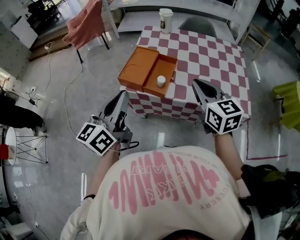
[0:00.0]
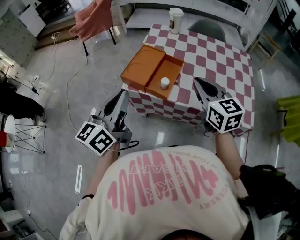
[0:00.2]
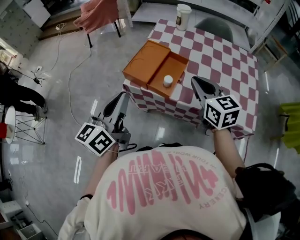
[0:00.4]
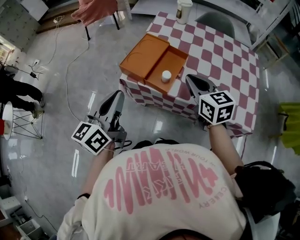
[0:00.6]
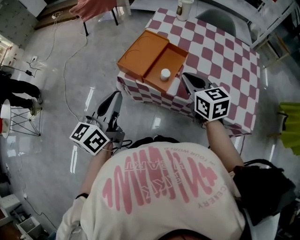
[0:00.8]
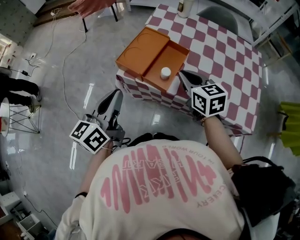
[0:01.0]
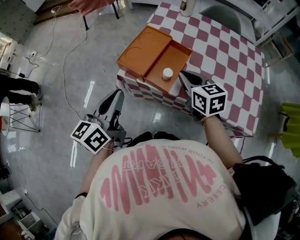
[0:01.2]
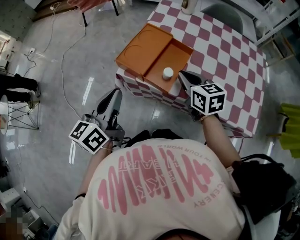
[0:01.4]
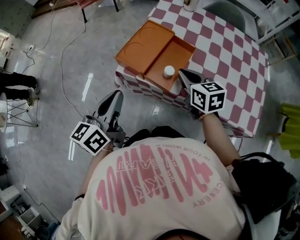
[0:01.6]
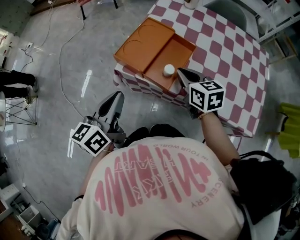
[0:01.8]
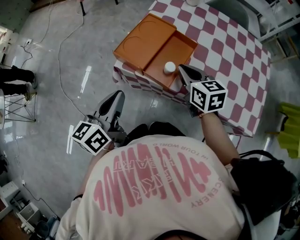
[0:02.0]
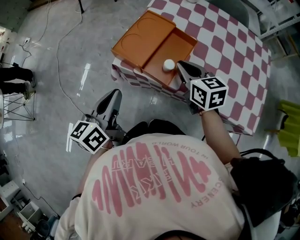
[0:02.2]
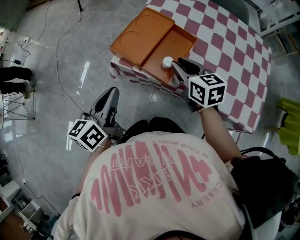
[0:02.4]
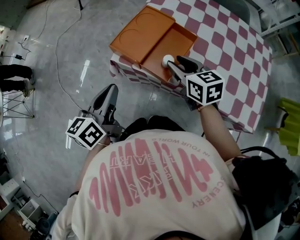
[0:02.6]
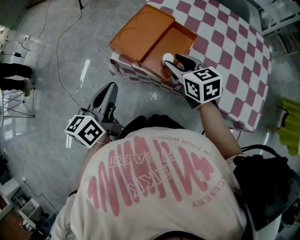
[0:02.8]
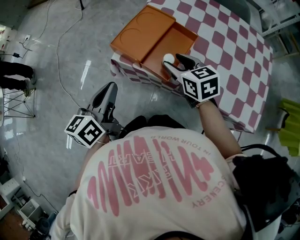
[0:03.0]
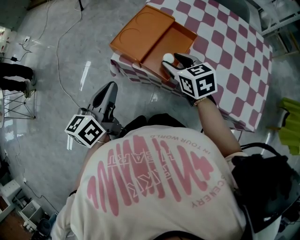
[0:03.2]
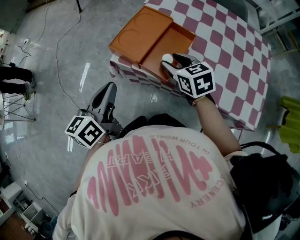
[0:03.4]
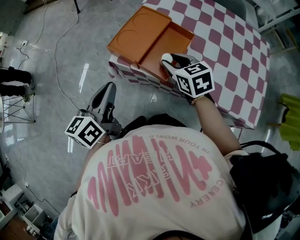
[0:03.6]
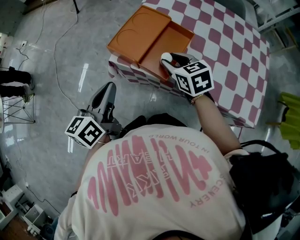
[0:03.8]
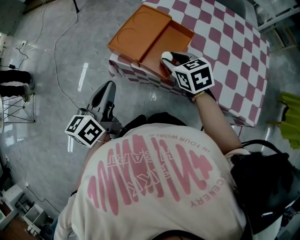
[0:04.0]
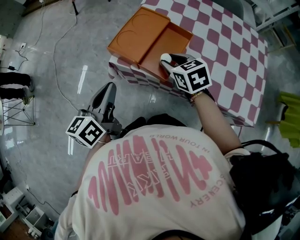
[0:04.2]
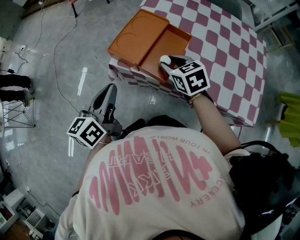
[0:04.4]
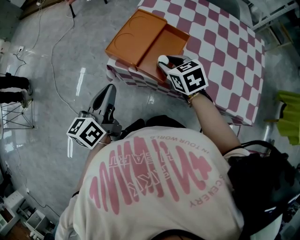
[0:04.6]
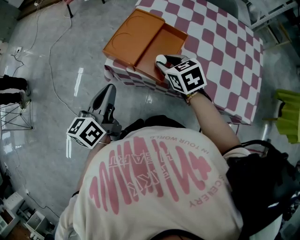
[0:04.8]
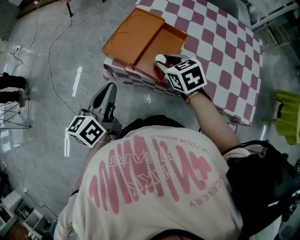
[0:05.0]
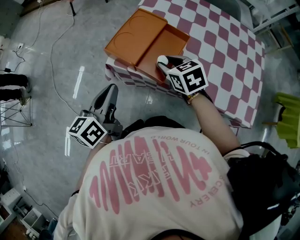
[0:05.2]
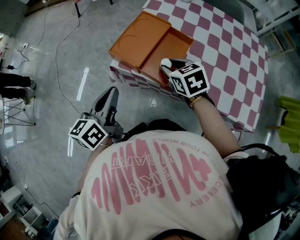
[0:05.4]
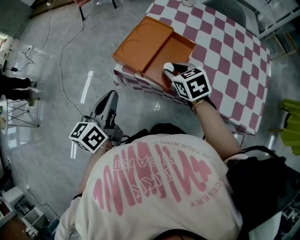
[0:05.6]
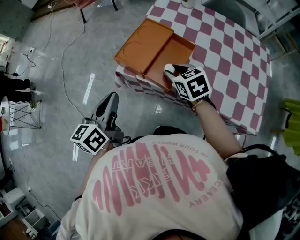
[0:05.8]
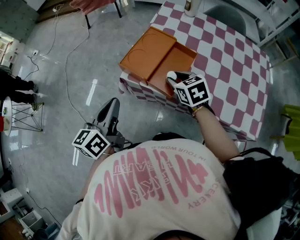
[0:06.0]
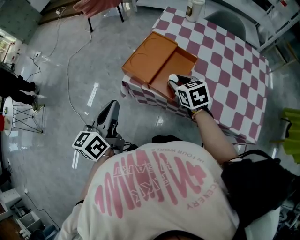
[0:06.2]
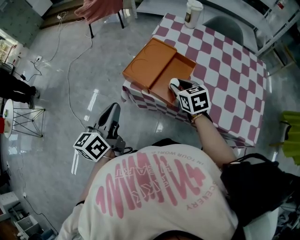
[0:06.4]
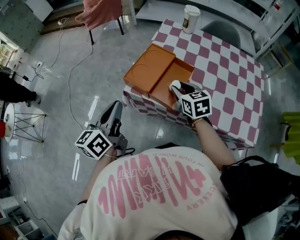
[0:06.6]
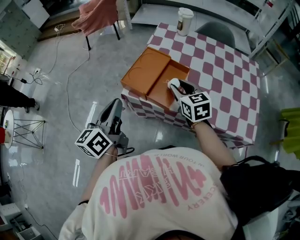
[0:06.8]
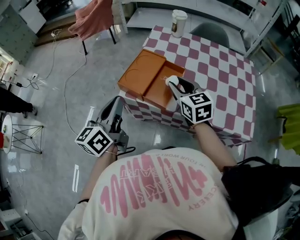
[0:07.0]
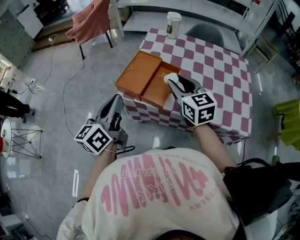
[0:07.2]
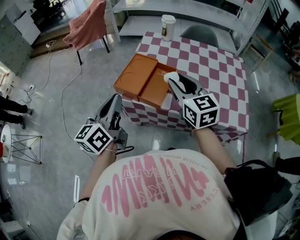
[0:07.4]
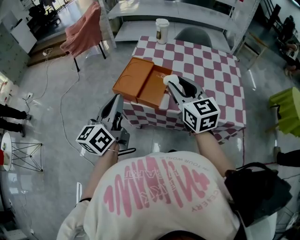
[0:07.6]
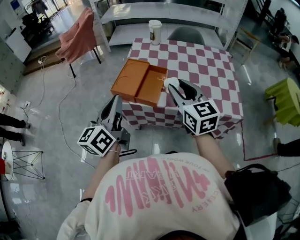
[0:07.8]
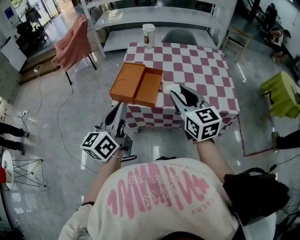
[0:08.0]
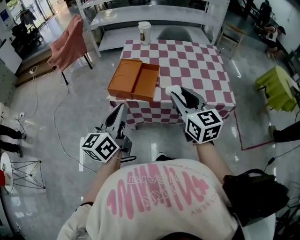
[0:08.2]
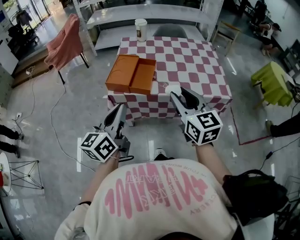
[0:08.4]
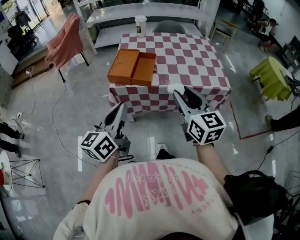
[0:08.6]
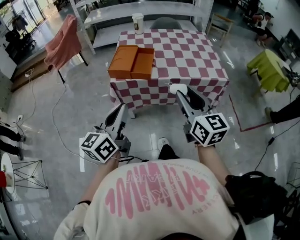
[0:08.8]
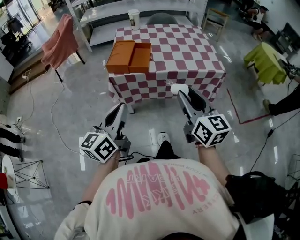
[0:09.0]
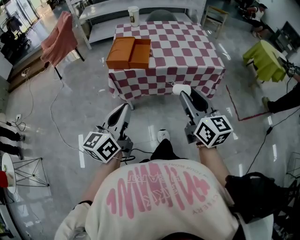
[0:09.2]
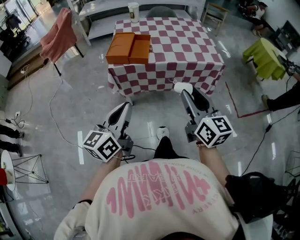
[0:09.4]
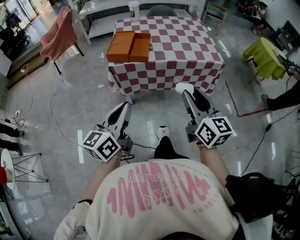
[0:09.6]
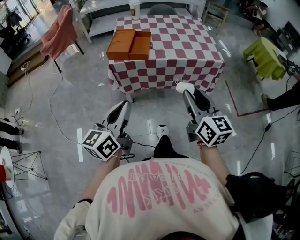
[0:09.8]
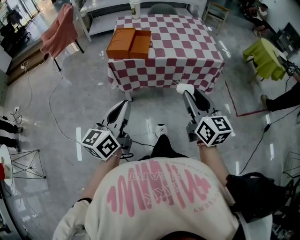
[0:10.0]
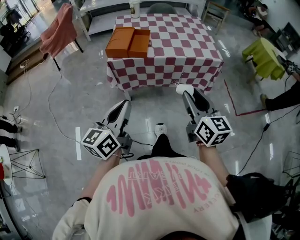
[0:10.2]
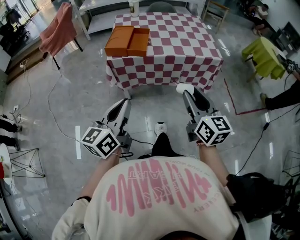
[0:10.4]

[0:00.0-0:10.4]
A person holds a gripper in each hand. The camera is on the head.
0:00.0 to 0:01.4: The right gripper heads downward and forward, covering approximately 20 cm, and turns by approximately 20 degrees, while the left gripper moves downward, roughly 10 cm.
0:01.4 to 0:03.0: The right gripper ends up approximately 5 cm from where it was, and opens up; the left gripper heads downward, covering approximately 5 cm.
0:03.0 to 0:06.0: The grippers stay close to where they were, moving slightly.
0:06.0 to 0:07.4: The left gripper goes roughly 10 cm upward; the right gripper goes some 20 cm upward, and angles its fingers upward, by about 30 degrees.
0:07.4 to 0:09.0: Both grippers travel together backward, some 30 cm. The left gripper changes its angle by about 20 degrees; the right gripper turns by approximately 30 degrees.
0:09.0 to 0:10.4: The grippers both shift backward by approximately 5 cm.

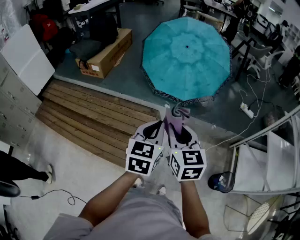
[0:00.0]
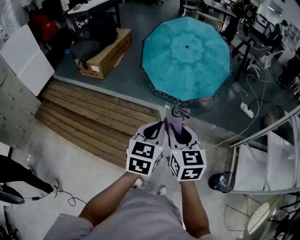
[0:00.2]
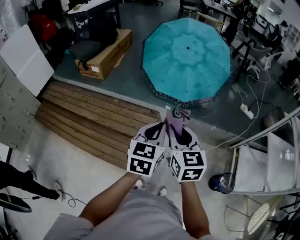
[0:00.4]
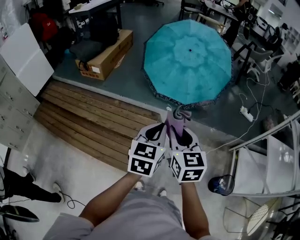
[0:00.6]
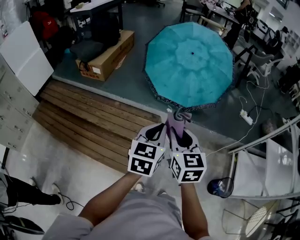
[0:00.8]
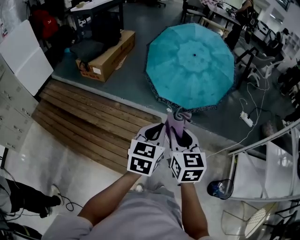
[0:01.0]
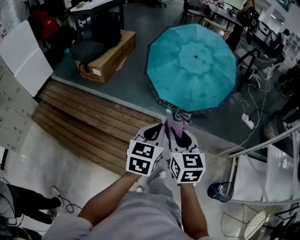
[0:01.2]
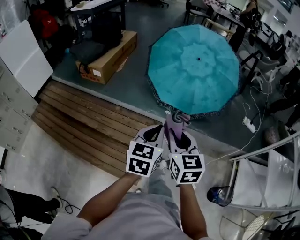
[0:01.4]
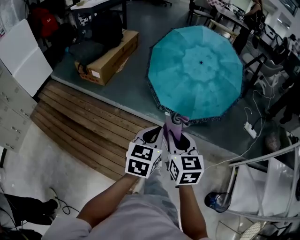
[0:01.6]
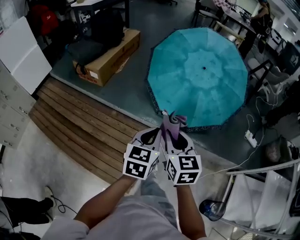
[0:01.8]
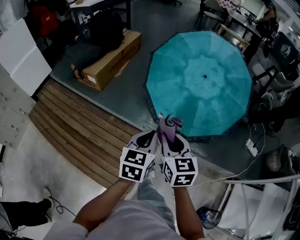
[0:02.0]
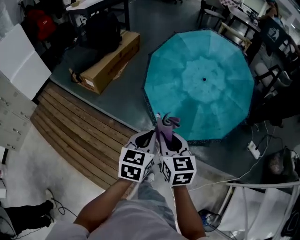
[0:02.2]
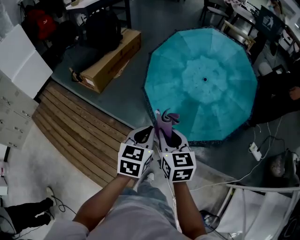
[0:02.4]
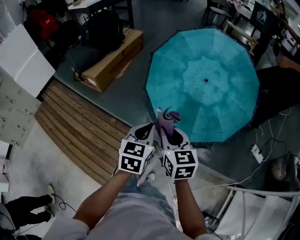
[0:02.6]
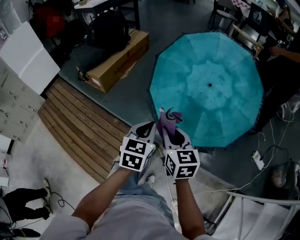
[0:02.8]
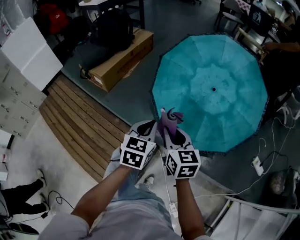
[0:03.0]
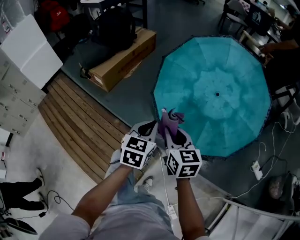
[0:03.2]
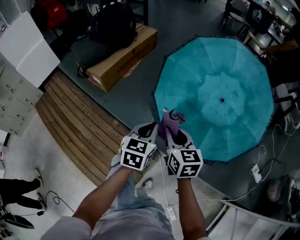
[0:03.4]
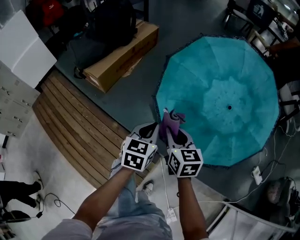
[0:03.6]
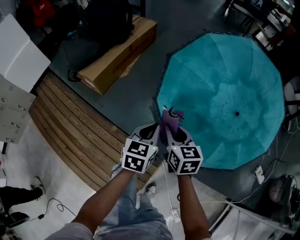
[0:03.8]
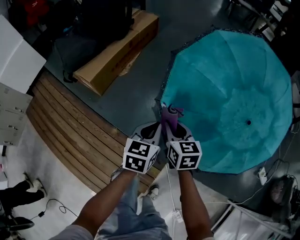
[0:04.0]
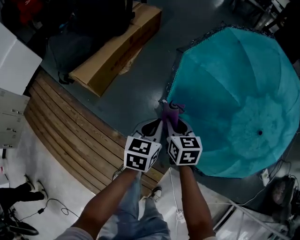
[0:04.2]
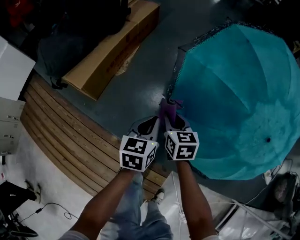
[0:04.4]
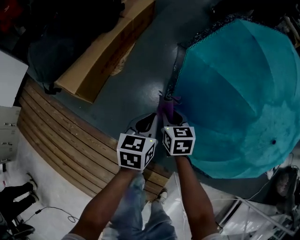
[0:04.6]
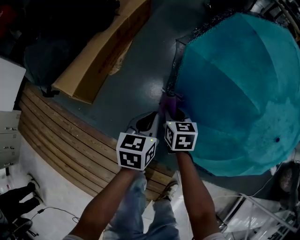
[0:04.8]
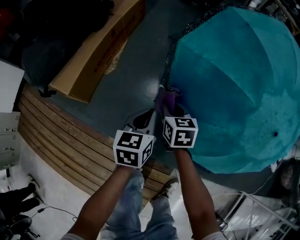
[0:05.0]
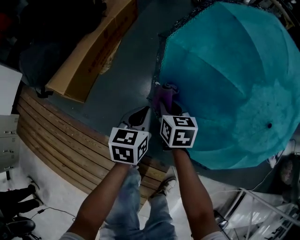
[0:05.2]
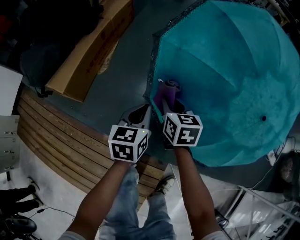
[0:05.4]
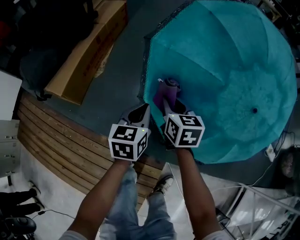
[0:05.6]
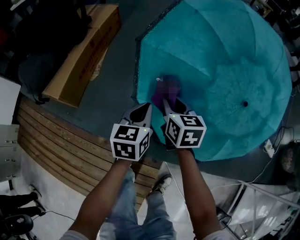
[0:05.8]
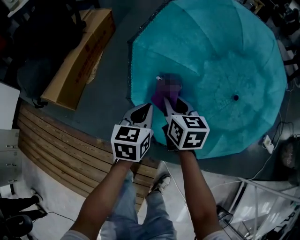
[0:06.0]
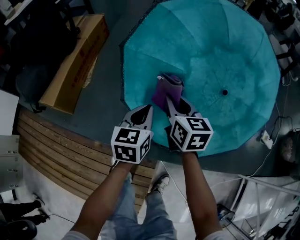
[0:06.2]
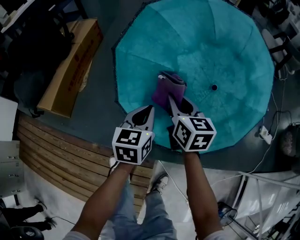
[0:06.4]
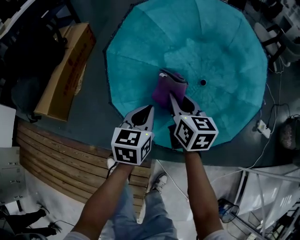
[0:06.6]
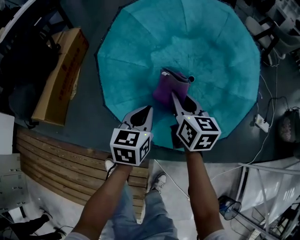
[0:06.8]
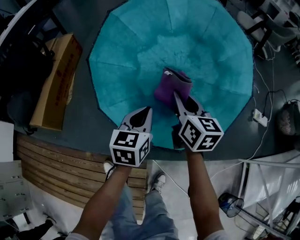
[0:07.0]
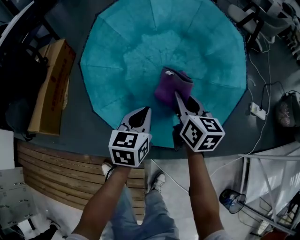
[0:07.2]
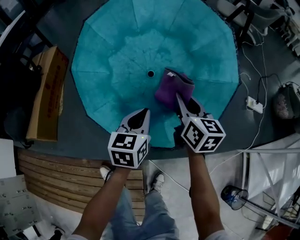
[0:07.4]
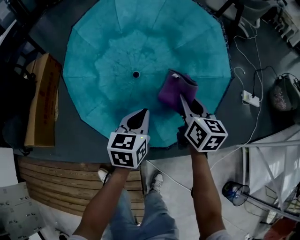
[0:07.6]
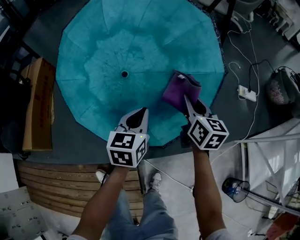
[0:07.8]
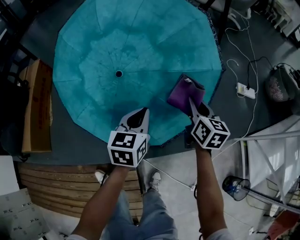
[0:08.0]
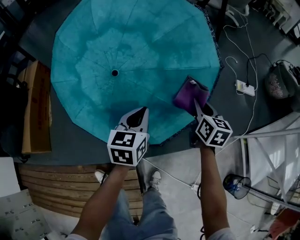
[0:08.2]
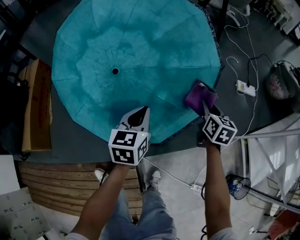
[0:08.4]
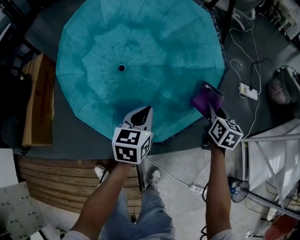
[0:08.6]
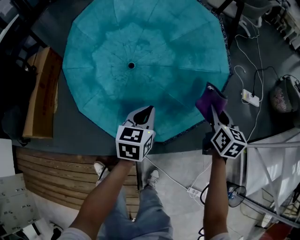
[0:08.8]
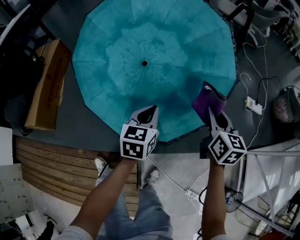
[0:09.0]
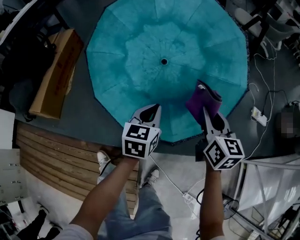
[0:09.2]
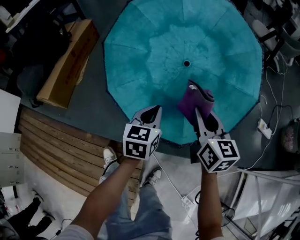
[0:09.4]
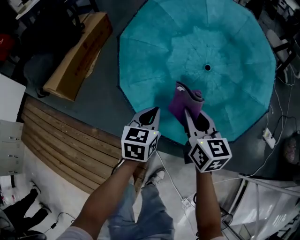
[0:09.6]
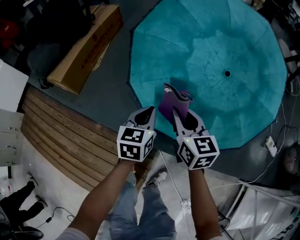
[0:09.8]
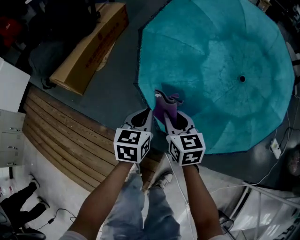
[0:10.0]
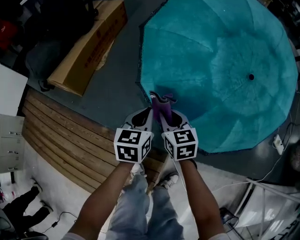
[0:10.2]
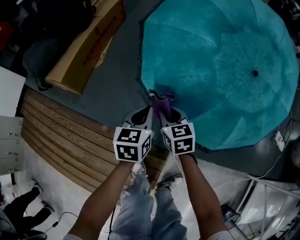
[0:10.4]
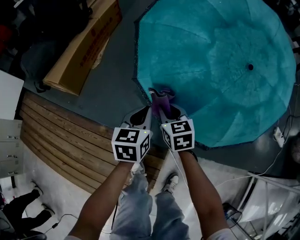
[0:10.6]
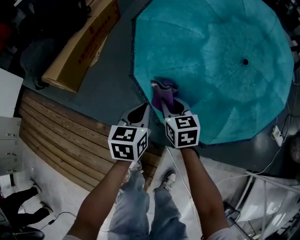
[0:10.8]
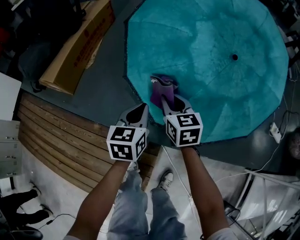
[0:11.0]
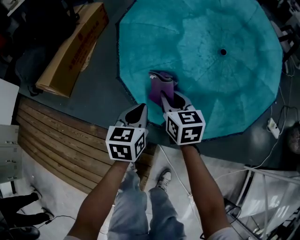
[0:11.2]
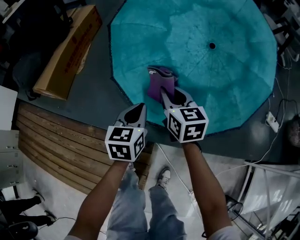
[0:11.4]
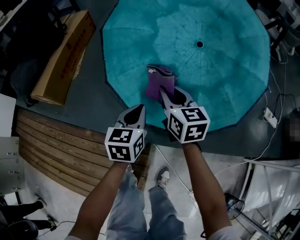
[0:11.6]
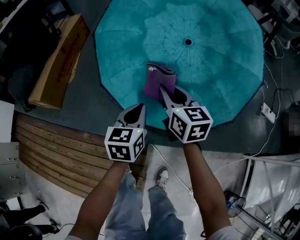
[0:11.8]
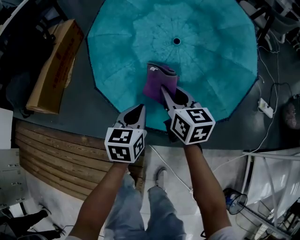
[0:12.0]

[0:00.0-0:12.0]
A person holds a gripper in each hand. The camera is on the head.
0:00.0 to 0:01.6: The two grippers go about 20 cm forward and to the left.
0:01.6 to 0:03.0: The grippers both shift forward by approximately 30 cm.
0:03.0 to 0:04.4: Both grippers move forward and downward, roughly 50 cm.
0:04.4 to 0:06.0: The left gripper moves to the right, about 15 cm. The right gripper moves to the right and upward, about 20 cm.
0:06.0 to 0:07.6: Both grippers move to the right, roughly 35 cm. The left gripper changes its angle by some 20 degrees; the right gripper swivels roughly 30 degrees.
0:07.6 to 0:09.0: The right gripper heads to the right, covering about 10 cm.
0:09.0 to 0:10.4: The left gripper shifts by approximately 35 cm, and changes its angle by some 20 degrees. Meanwhile the right gripper shifts by about 50 cm, and changes its angle by approximately 40 degrees.
0:10.4 to 0:12.0: The left gripper goes some 20 cm to the right. The right gripper goes roughly 25 cm to the right and upward, and changes its angle by approximately 30 degrees.

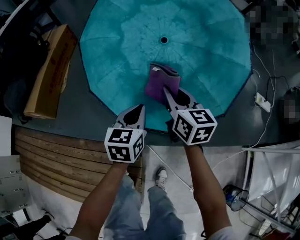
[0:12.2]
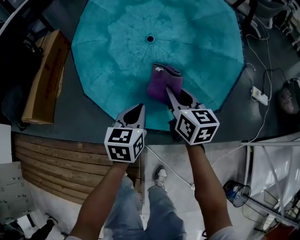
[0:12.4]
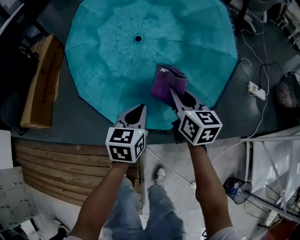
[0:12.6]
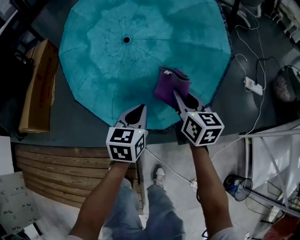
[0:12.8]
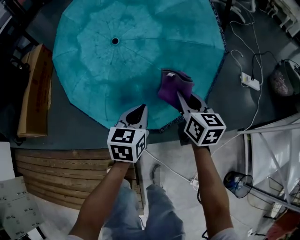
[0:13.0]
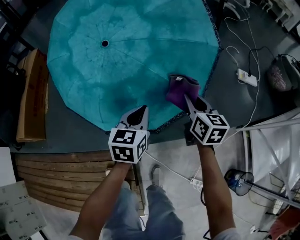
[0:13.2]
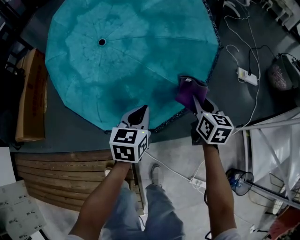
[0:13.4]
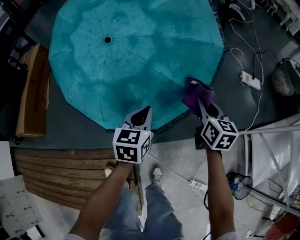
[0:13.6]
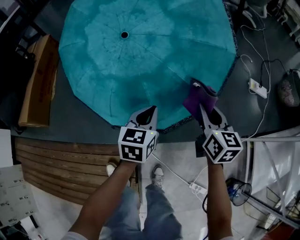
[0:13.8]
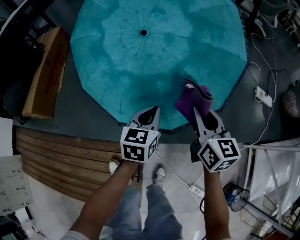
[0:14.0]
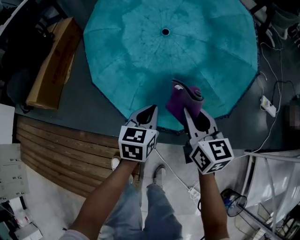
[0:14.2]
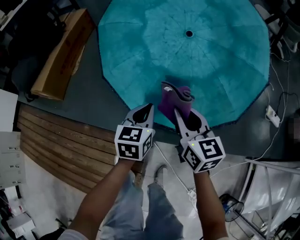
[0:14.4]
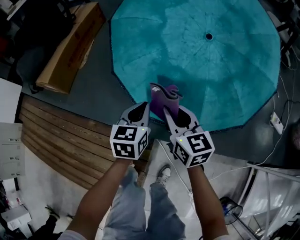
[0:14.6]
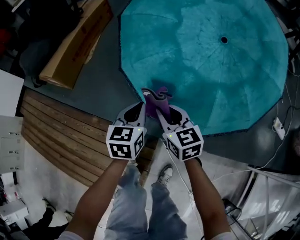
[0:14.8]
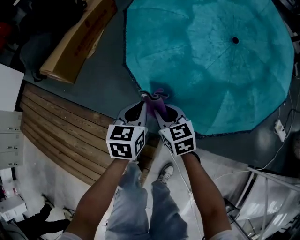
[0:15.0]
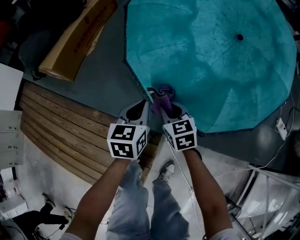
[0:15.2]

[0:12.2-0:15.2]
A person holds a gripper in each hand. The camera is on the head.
0:12.2 to 0:13.8: The right gripper heads to the right, covering some 25 cm. Meanwhile the left gripper moves to the right, approximately 15 cm.
0:13.8 to 0:15.2: The left gripper moves about 30 cm, and turns by approximately 30 degrees. Meanwhile the right gripper changes place by about 40 cm, and turns by approximately 50 degrees.
